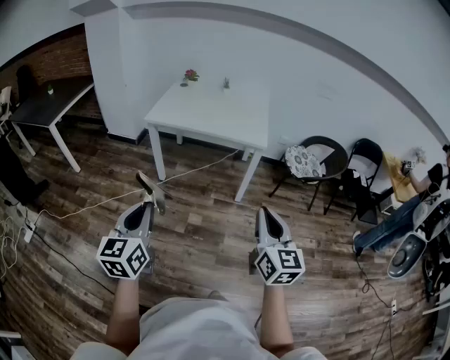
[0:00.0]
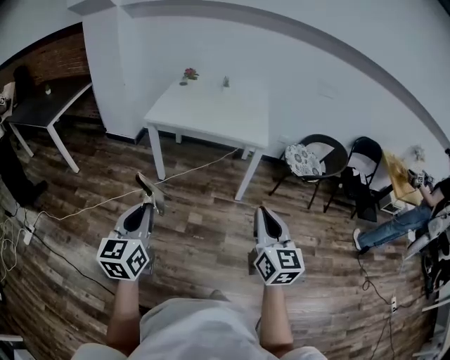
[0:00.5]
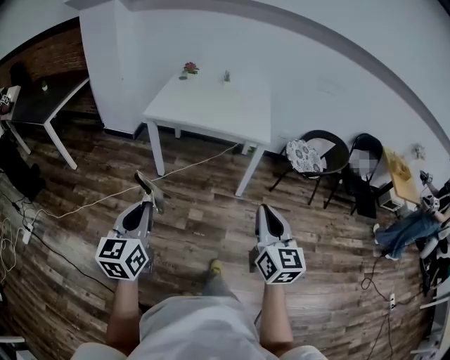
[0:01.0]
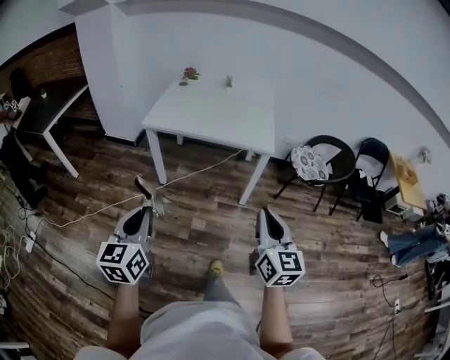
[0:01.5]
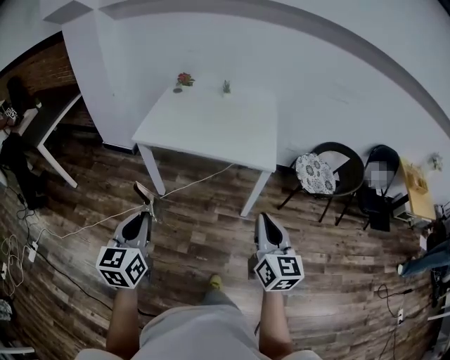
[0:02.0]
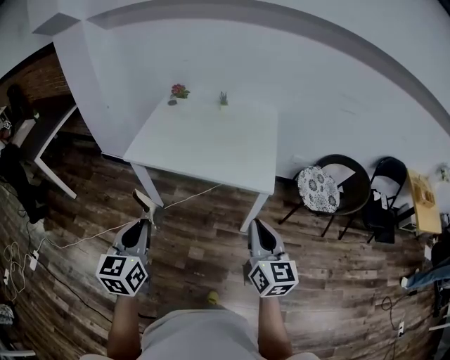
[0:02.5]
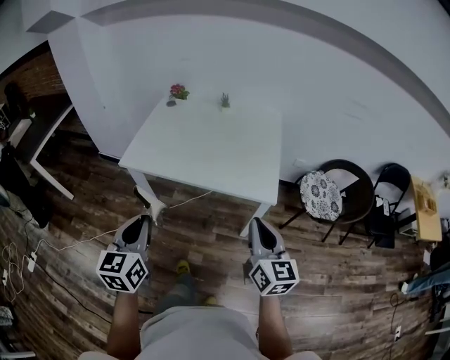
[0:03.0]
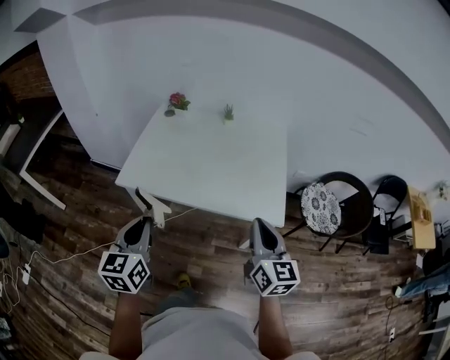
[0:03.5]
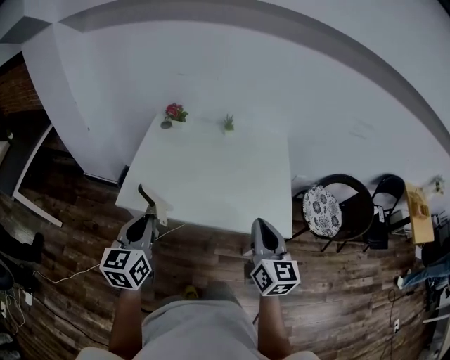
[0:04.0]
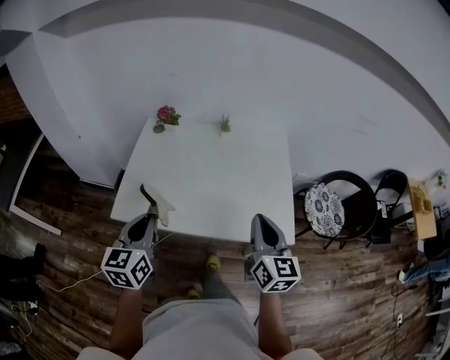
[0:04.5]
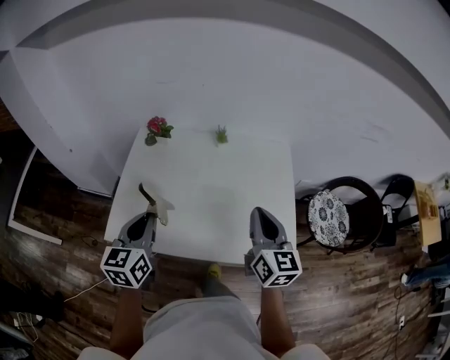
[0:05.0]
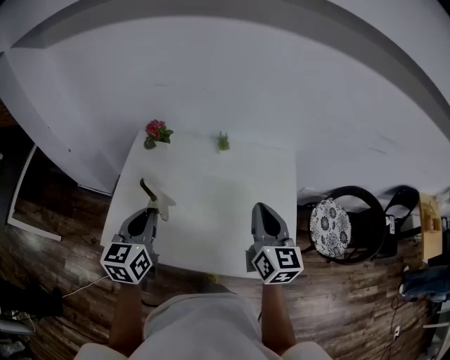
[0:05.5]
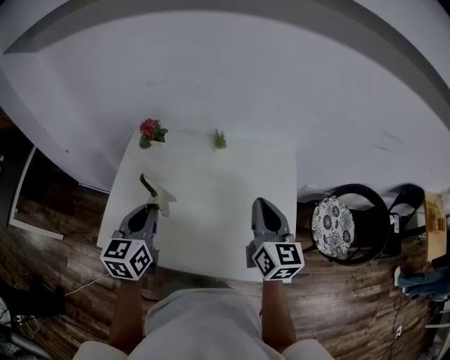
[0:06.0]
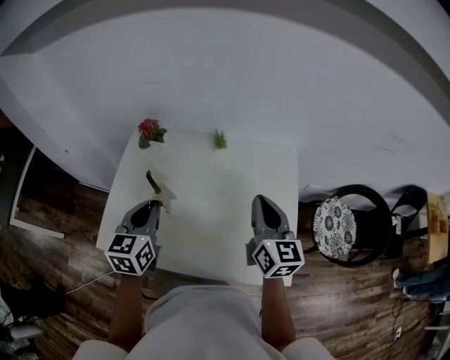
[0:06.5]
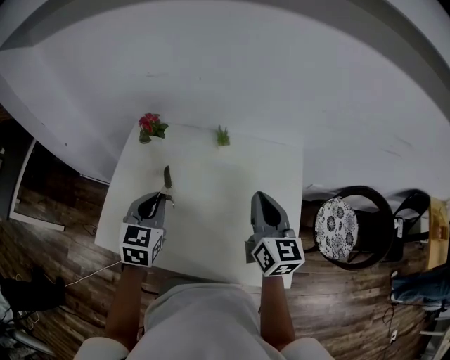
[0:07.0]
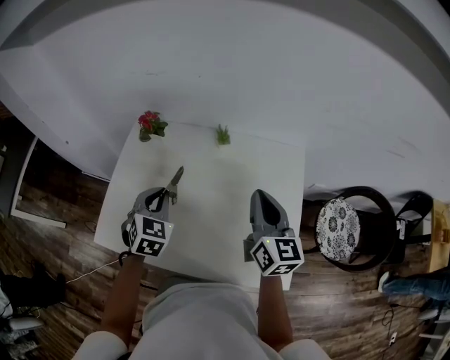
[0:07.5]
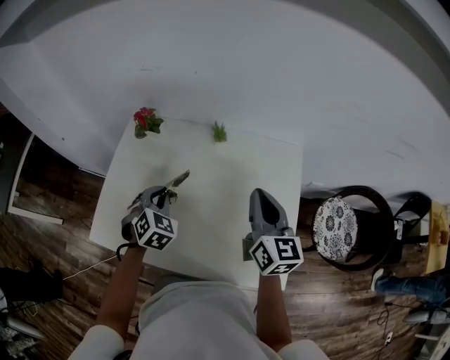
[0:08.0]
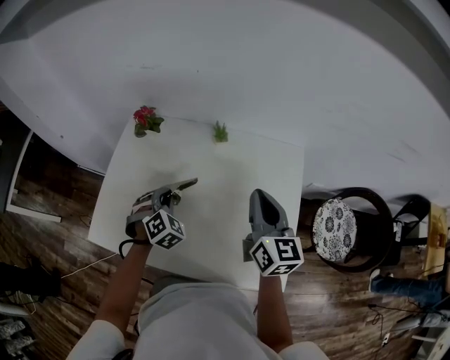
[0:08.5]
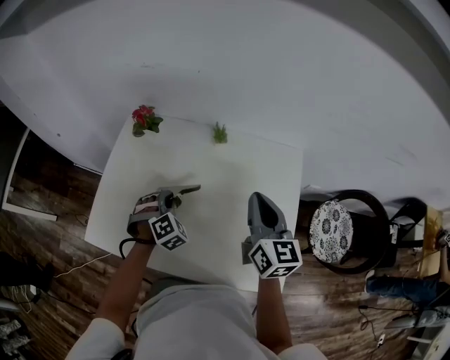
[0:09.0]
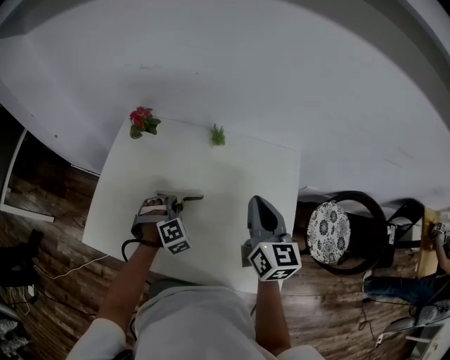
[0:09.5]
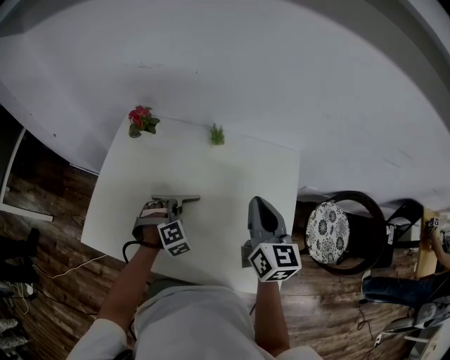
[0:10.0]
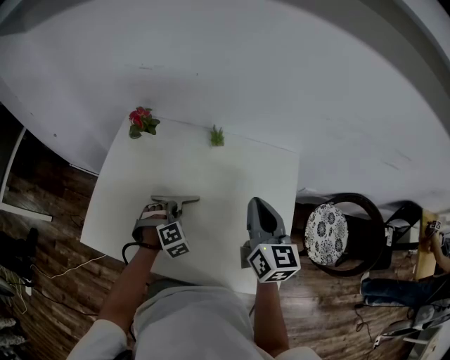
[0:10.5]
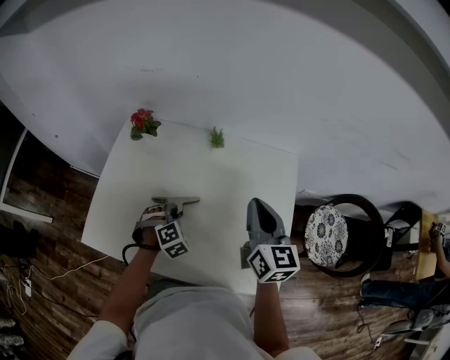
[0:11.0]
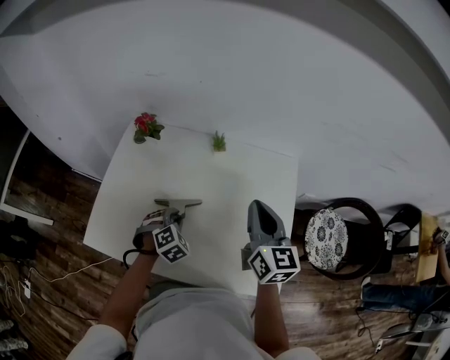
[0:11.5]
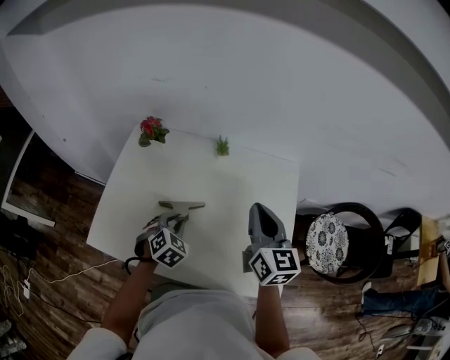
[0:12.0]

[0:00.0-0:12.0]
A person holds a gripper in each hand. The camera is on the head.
0:00.0 to 0:02.0: The grippers both shift forward by roughly 25 cm.
0:02.0 to 0:04.0: The two grippers go roughly 40 cm forward.
0:04.0 to 0:06.0: The two grippers go about 30 cm forward.
0:06.0 to 0:08.0: The left gripper goes about 15 cm downward and forward, and rolls clockwise, seen from behind, by some 50 degrees. Meanwhile the right gripper heads forward, covering approximately 5 cm.
0:08.0 to 0:10.0: The left gripper travels downward by approximately 10 cm, and rotates some 30 degrees.
0:10.0 to 0:12.0: The left gripper shifts by approximately 5 cm, and swivels roughly 30 degrees.

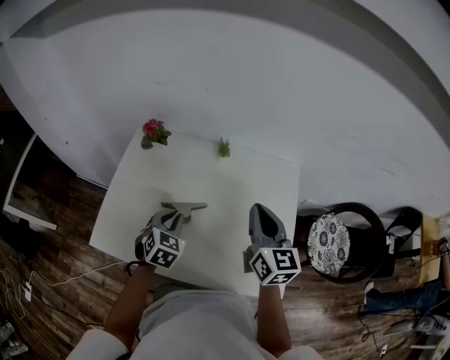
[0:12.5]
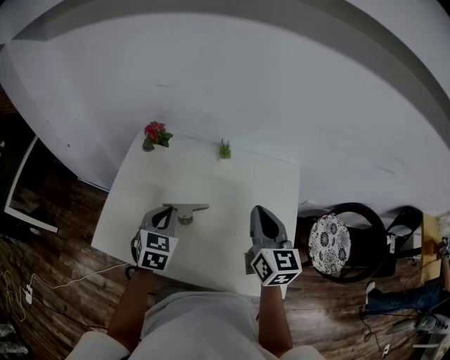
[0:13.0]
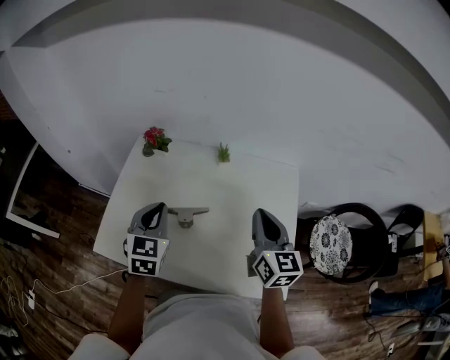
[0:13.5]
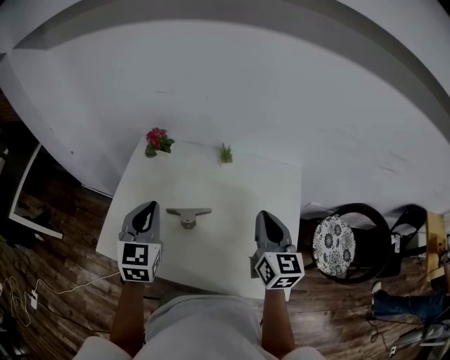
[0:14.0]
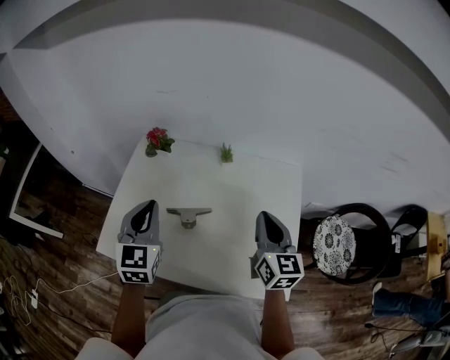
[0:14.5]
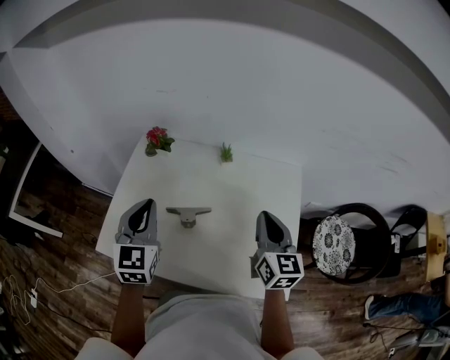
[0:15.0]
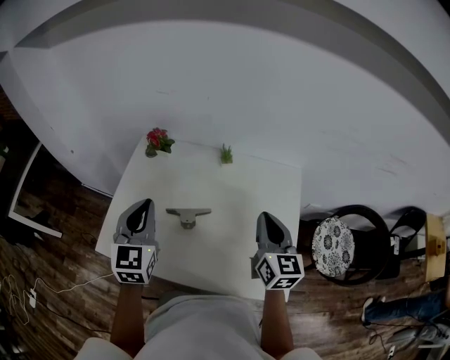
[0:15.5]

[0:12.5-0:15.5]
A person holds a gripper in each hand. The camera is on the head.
0:12.5 to 0:14.0: The left gripper moves upward and to the left, roughly 15 cm, and rotates some 30 degrees.
0:14.0 to 0:15.5: The grippers make only small movements.

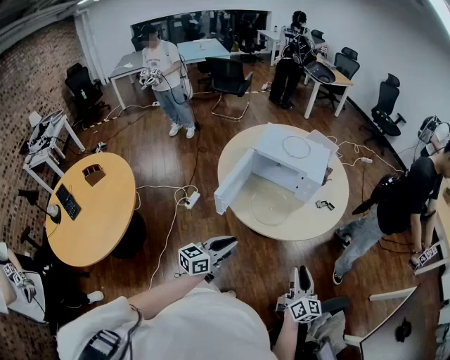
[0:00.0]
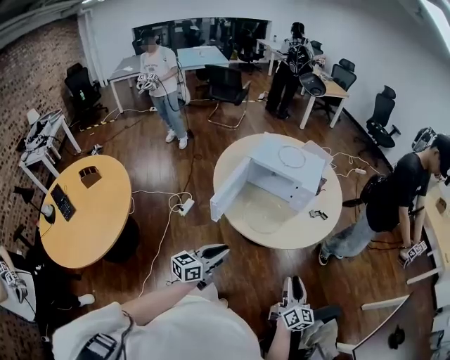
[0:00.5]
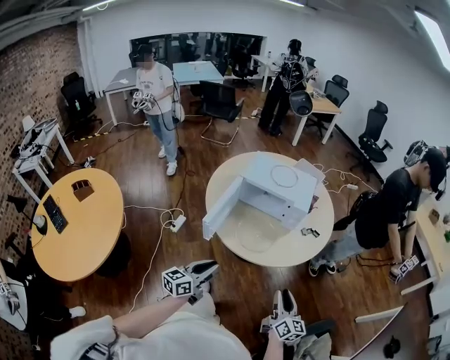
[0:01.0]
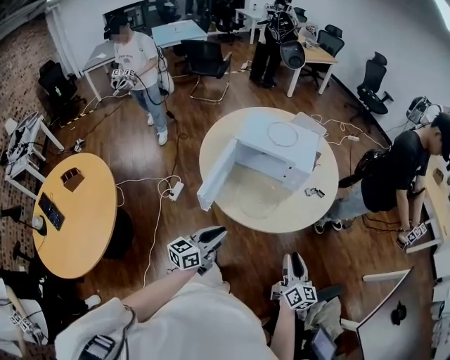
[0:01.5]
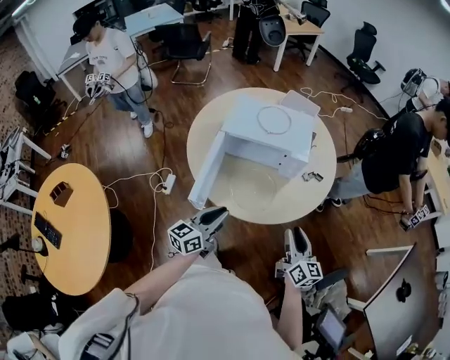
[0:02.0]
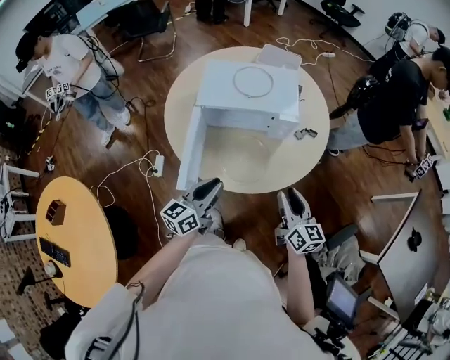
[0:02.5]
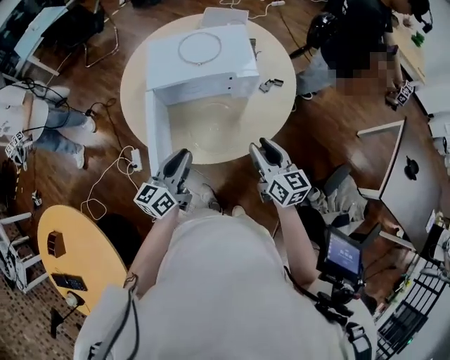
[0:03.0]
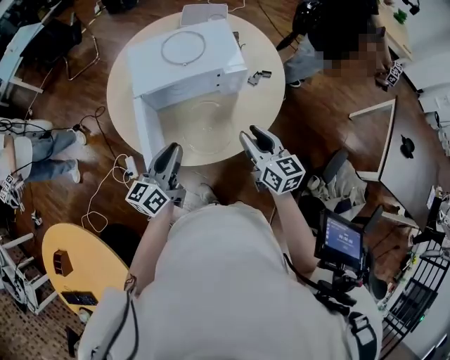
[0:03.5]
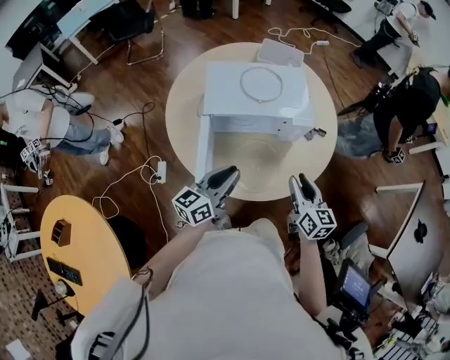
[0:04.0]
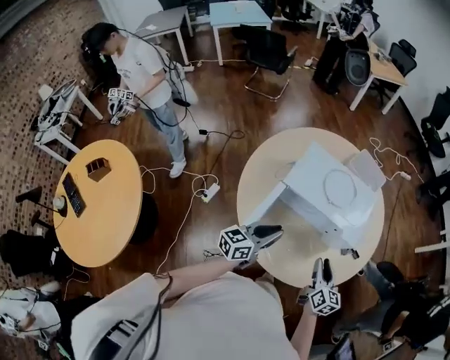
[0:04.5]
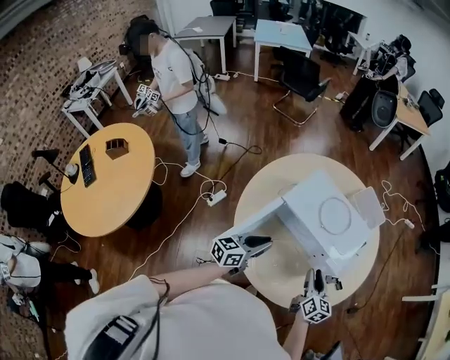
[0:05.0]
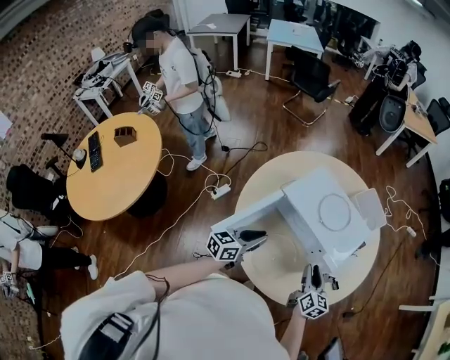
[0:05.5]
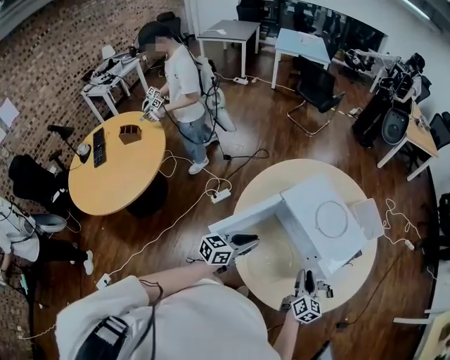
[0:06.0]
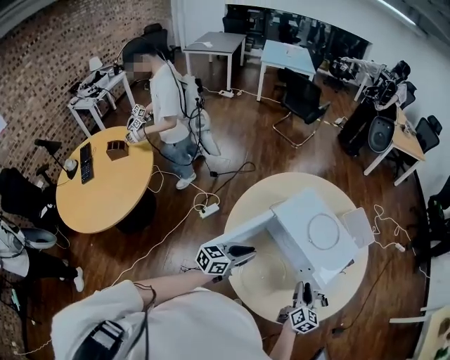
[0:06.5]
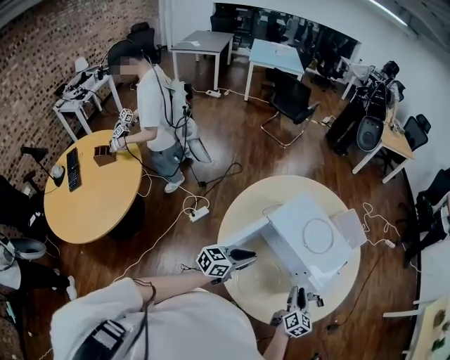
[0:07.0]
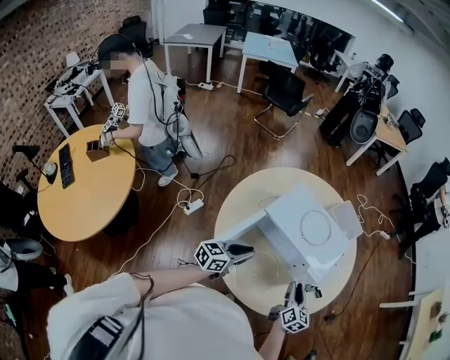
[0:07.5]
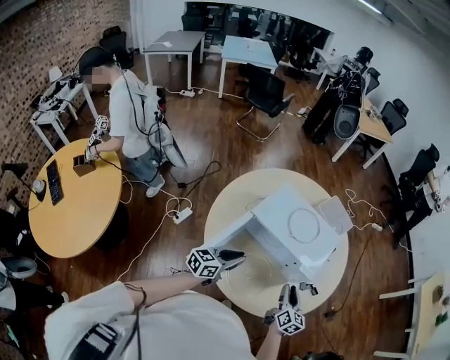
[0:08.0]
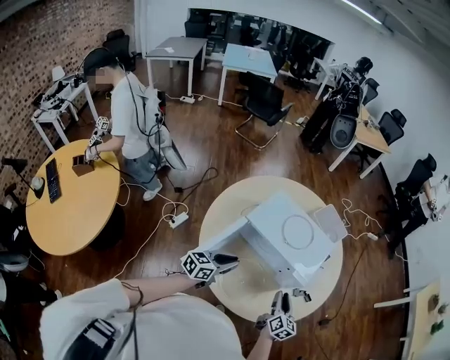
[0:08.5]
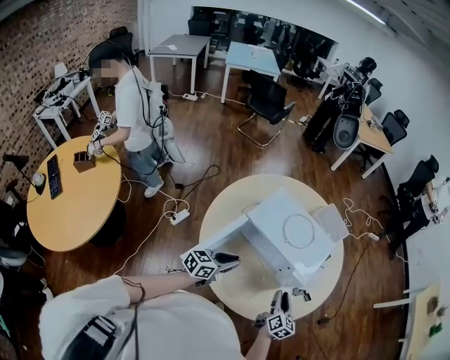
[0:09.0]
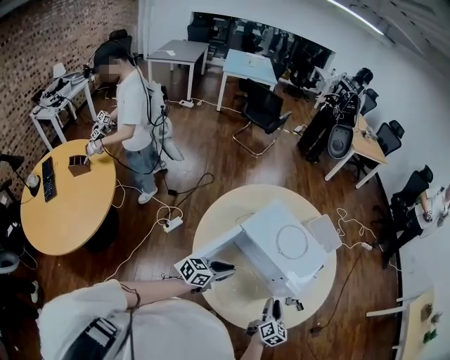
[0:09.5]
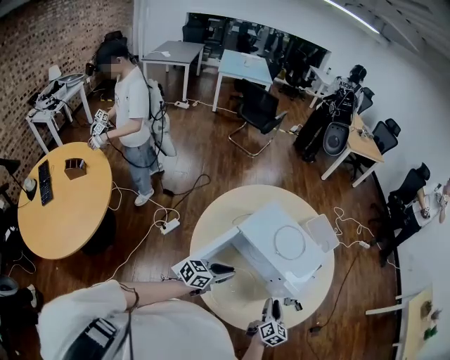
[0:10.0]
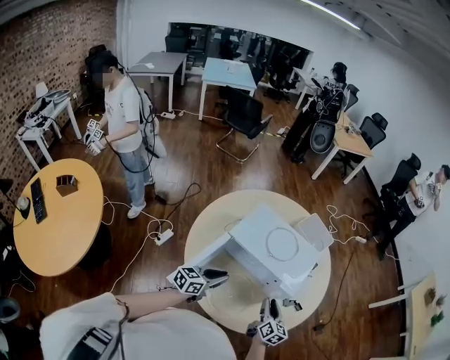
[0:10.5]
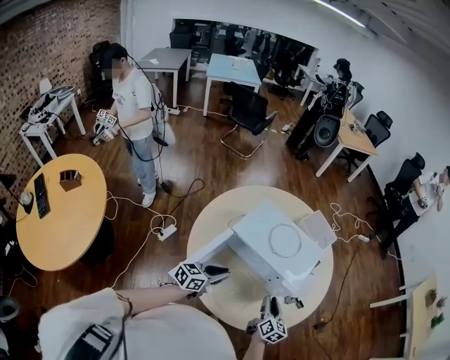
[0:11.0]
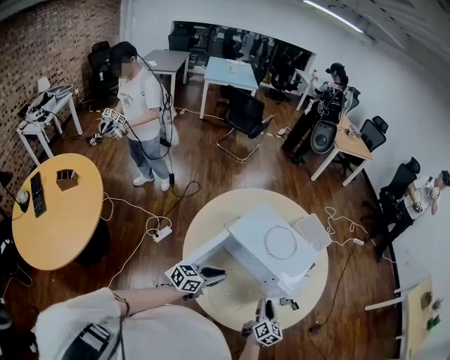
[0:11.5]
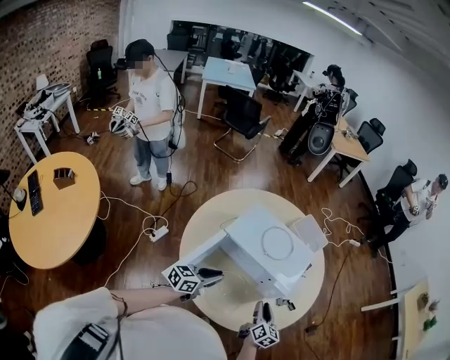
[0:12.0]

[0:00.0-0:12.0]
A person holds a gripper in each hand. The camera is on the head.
0:00.0 to 0:02.0: The right gripper heads forward and to the left, covering approximately 15 cm. Meanwhile the left gripper goes roughly 15 cm forward.
0:02.0 to 0:04.0: The left gripper heads forward, covering some 15 cm, while the right gripper heads forward and to the left, covering about 15 cm.
0:04.0 to 0:06.0: The left gripper changes its angle by about 40 degrees; the right gripper shifts by roughly 15 cm, and changes its angle by about 30 degrees.
0:06.0 to 0:08.0: The grippers move only a little.
0:08.0 to 0:12.0: The grippers move only a little.
